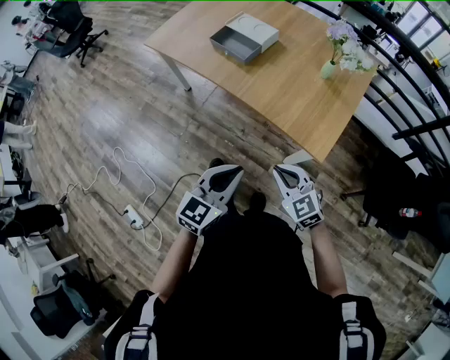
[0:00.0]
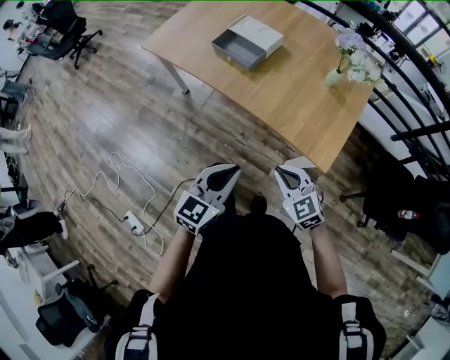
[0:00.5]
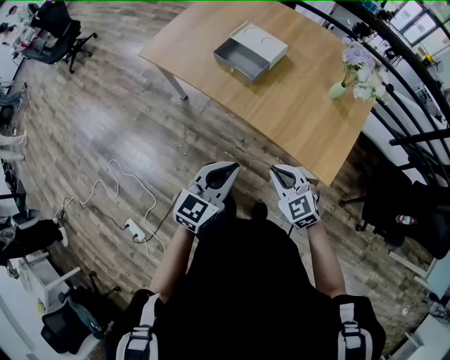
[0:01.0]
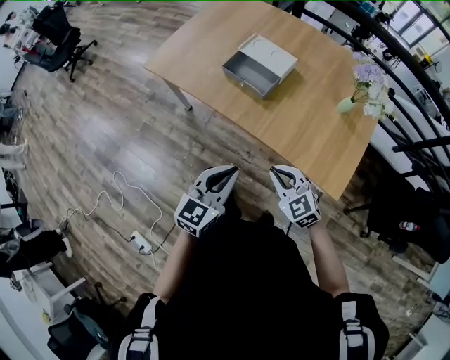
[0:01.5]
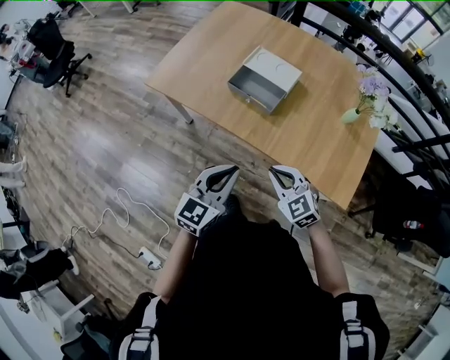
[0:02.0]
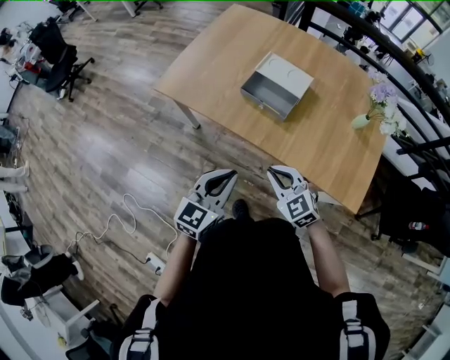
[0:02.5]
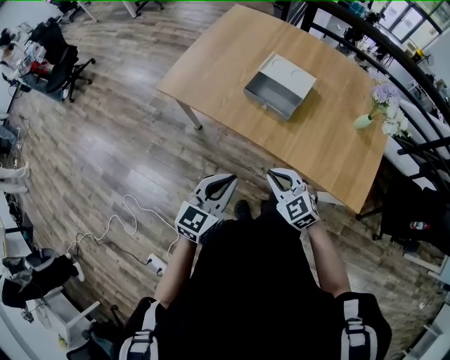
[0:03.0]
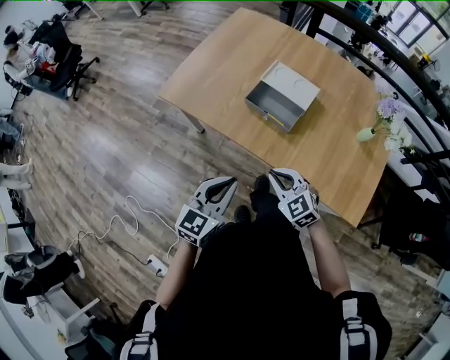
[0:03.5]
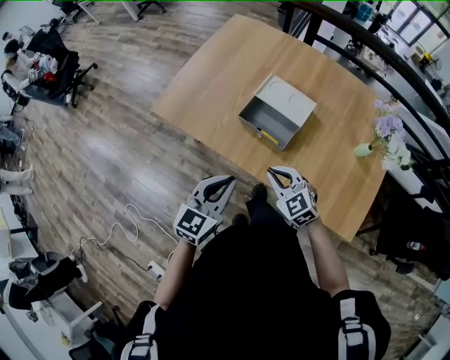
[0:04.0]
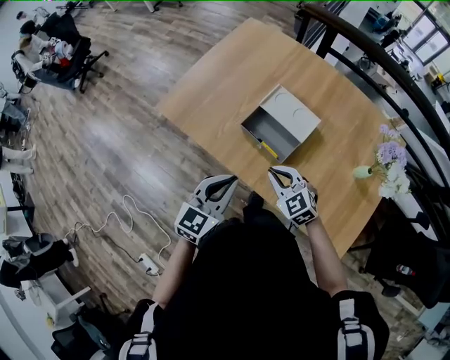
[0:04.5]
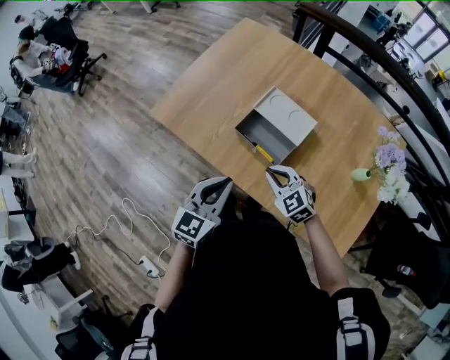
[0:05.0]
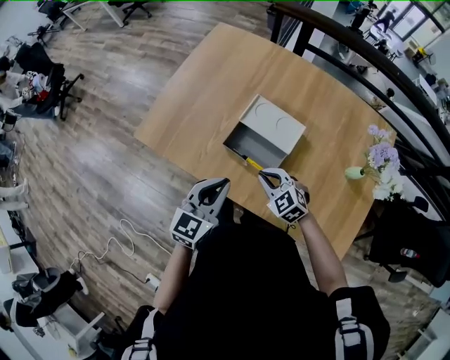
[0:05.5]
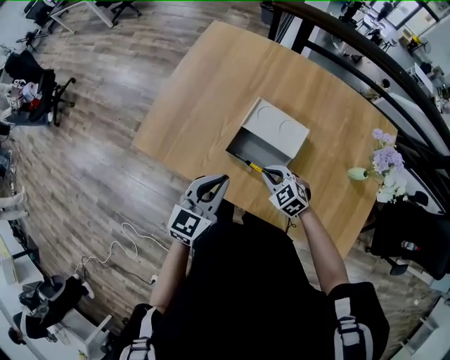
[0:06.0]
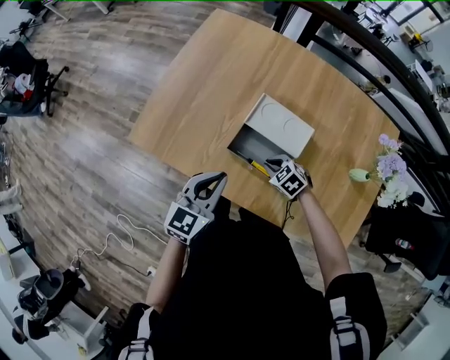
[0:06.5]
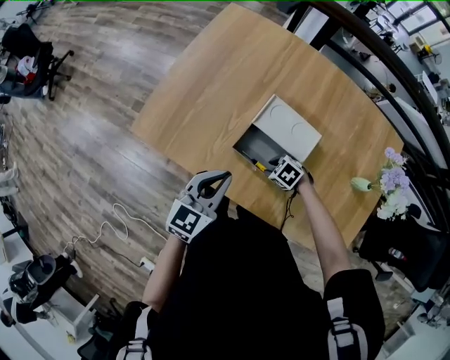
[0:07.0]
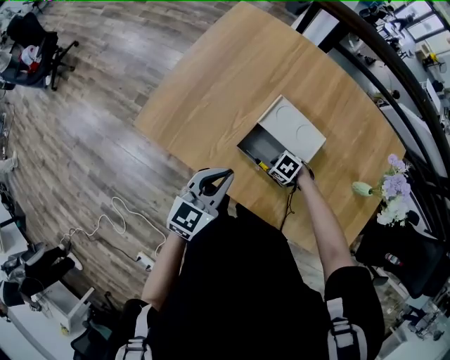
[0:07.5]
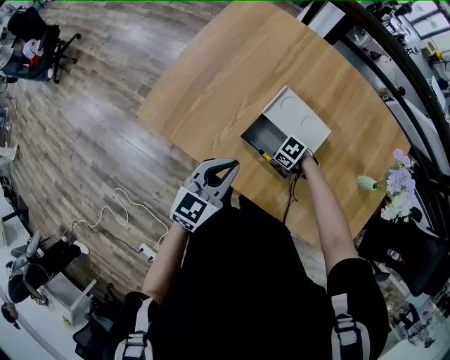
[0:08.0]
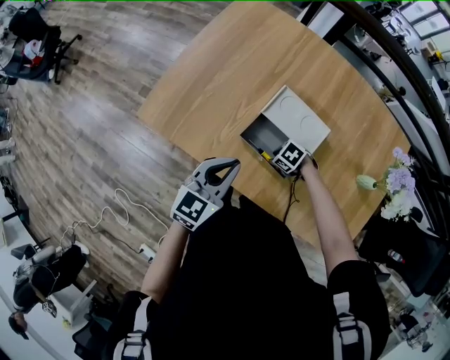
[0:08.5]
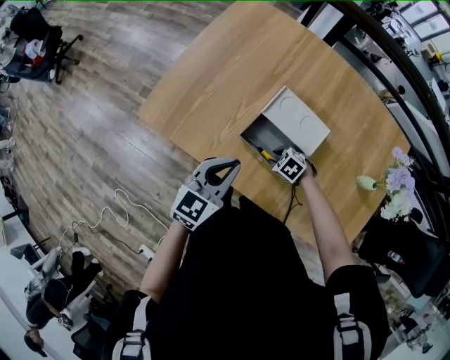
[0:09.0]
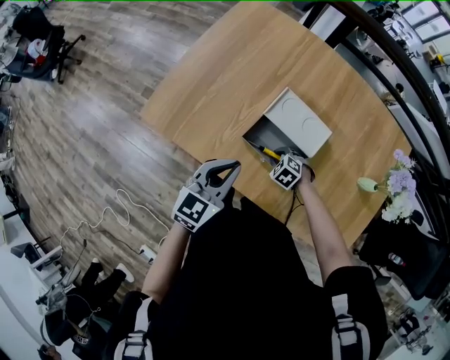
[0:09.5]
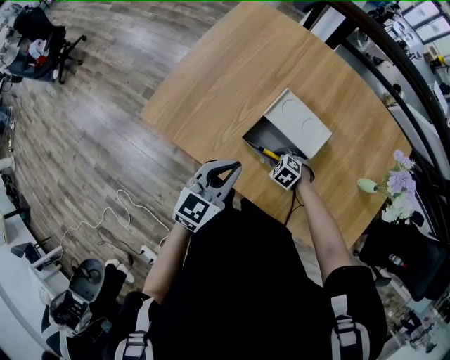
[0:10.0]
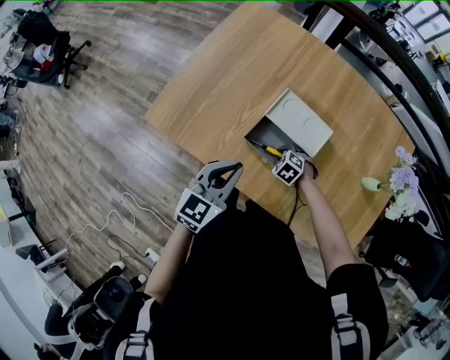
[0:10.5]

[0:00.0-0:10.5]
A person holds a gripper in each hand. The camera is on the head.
0:00.0 to 0:02.0: Both grippers travel together forward and to the left, roughly 30 cm.
0:02.0 to 0:04.0: The grippers both shift forward by approximately 15 cm.
0:04.0 to 0:06.5: The right gripper goes about 25 cm forward and downward, and turns by approximately 30 degrees; the left gripper shifts about 20 cm forward.
0:06.5 to 0:08.5: The right gripper is displaced downward by about 5 cm, changes its angle by about 30 degrees, and opens.
0:08.5 to 0:10.5: The right gripper swivels about 30 degrees.

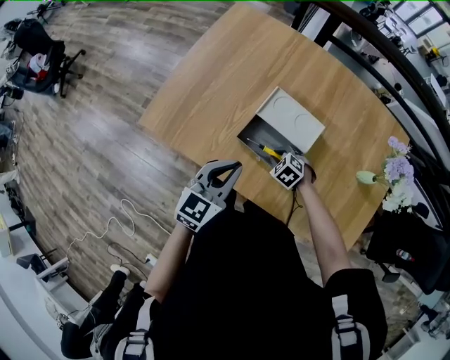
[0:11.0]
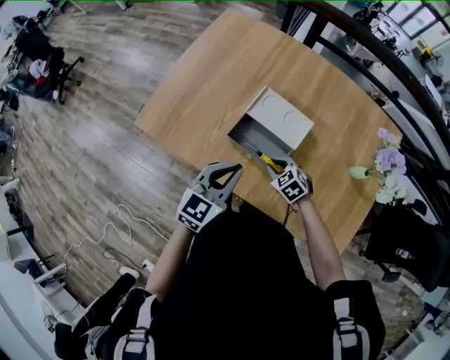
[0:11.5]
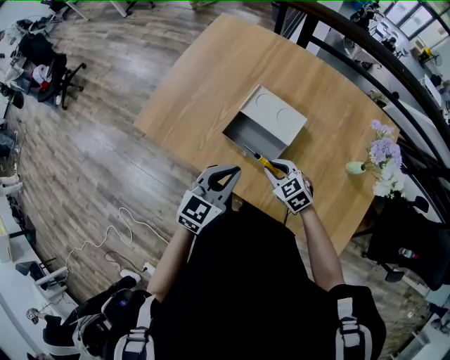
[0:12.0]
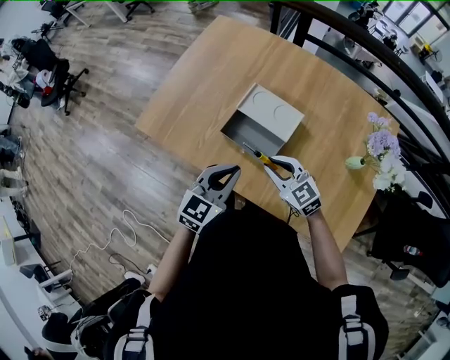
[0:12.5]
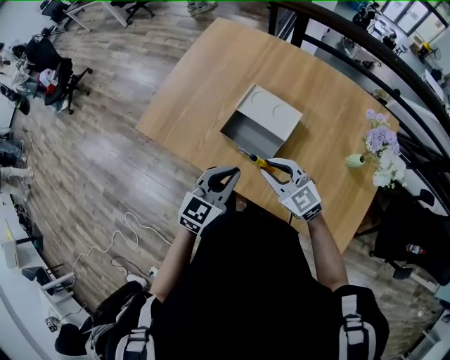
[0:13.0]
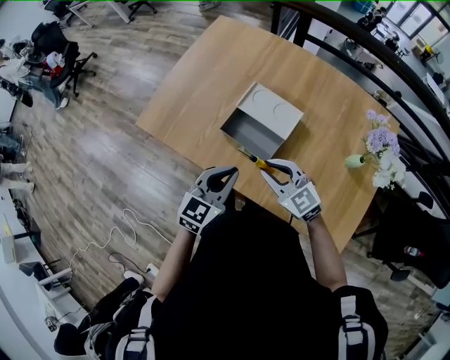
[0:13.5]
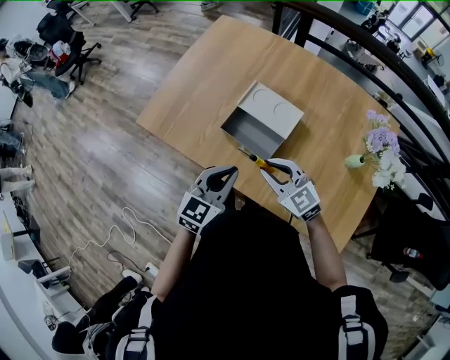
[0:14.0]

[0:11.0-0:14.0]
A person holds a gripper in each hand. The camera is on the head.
0:11.0 to 0:12.5: The left gripper heads backward and to the right, covering approximately 10 cm; the right gripper heads upward and backward, covering some 20 cm, and points its fingers approximately 40 degrees further upward.
0:12.5 to 0:14.0: There are only small adjustments of the grippers.

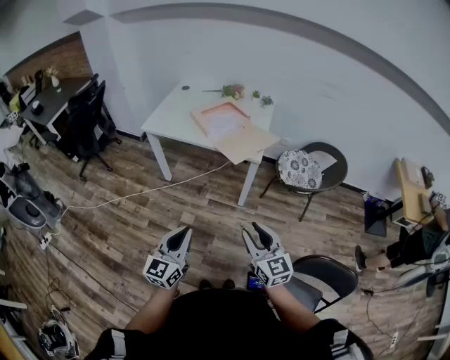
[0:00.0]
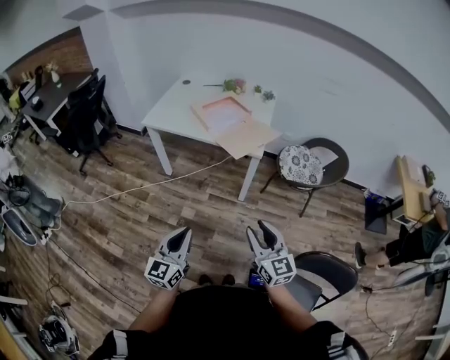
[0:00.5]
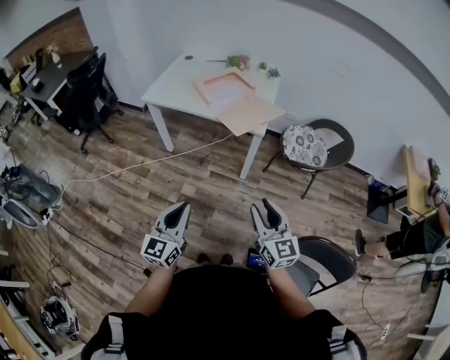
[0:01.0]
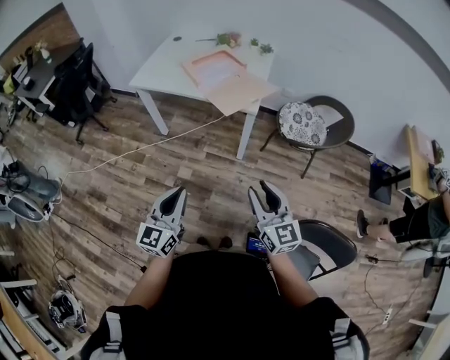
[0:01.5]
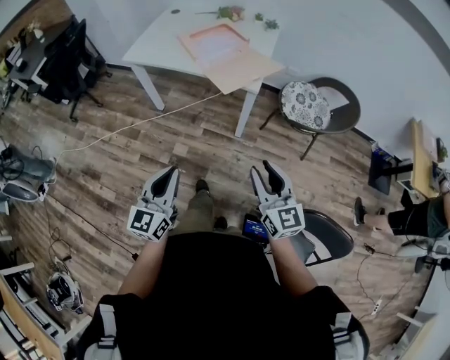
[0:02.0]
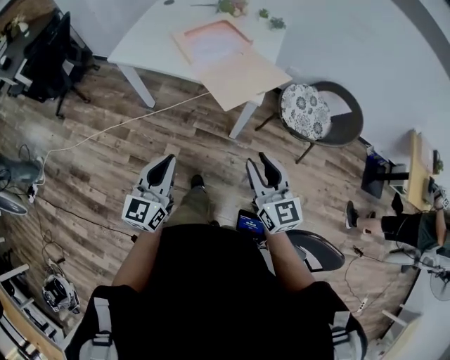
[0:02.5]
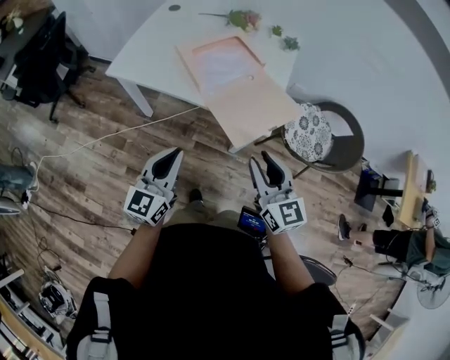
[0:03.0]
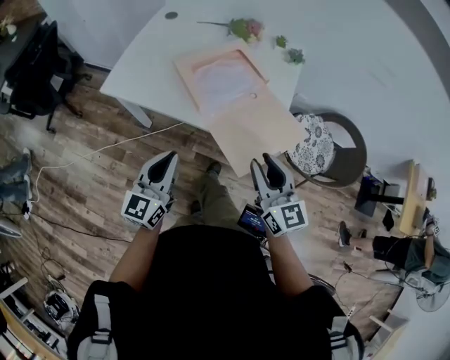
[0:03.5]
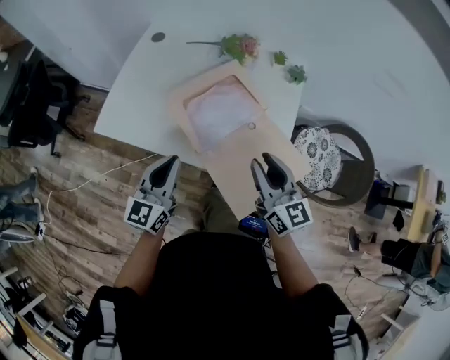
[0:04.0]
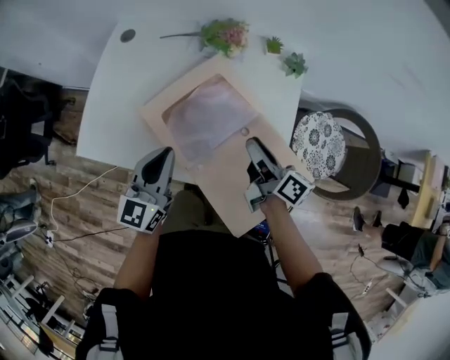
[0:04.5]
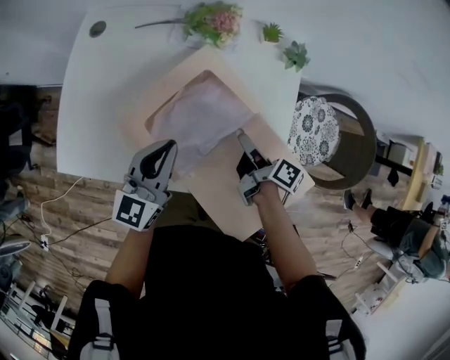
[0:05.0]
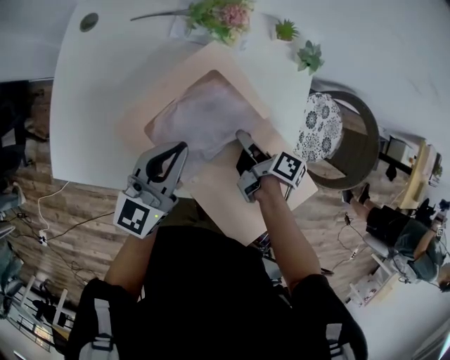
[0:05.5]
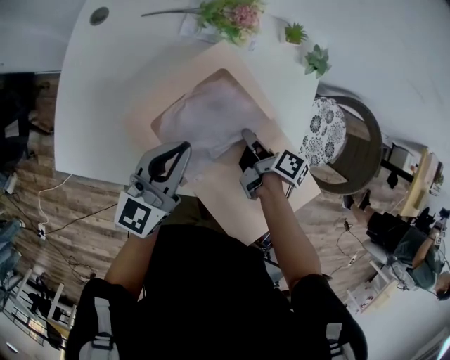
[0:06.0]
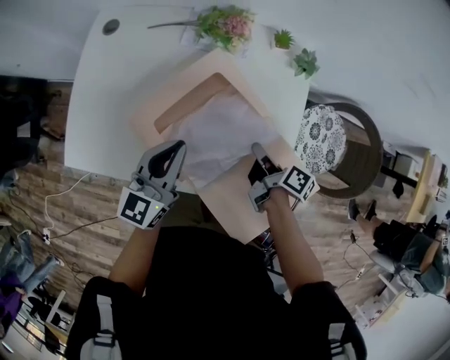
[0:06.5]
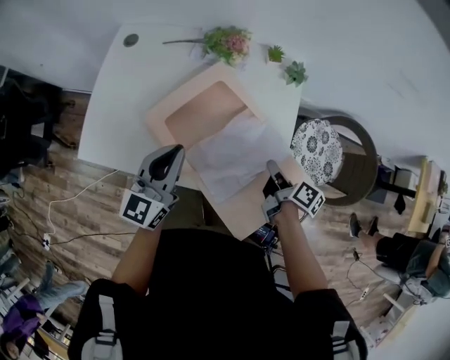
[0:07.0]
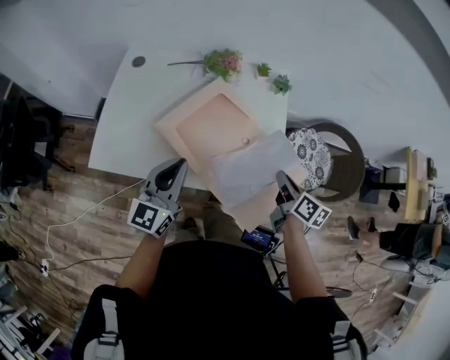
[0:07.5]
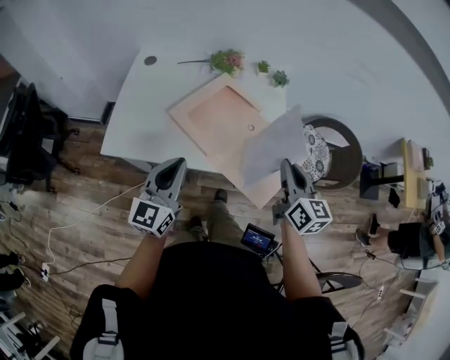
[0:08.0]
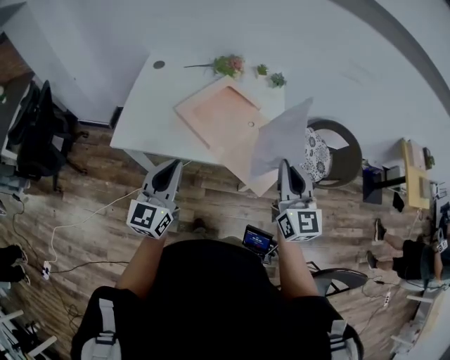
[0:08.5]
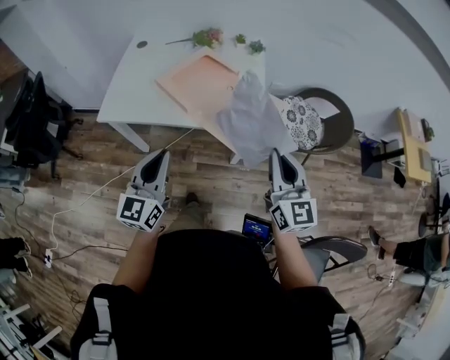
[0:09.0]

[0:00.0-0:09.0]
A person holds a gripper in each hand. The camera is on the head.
0:00.0 to 0:02.0: The right gripper heads to the right and forward, covering approximately 10 cm; the left gripper changes place by roughly 5 cm.
0:02.0 to 0:04.5: The two grippers travel together, forward, roughly 60 cm. The right gripper rolls clockwise, seen from behind, by some 60 degrees.
0:04.5 to 0:07.0: The right gripper travels downward and to the right by about 10 cm, turns by approximately 30 degrees, and closes its fingers. Meanwhile the left gripper moves some 10 cm forward and comes back.
0:07.0 to 0:09.0: The left gripper heads backward, covering approximately 35 cm. Meanwhile the right gripper goes some 40 cm backward and upward, and twists roughly 70 degrees counterclockwise, seen from behind.

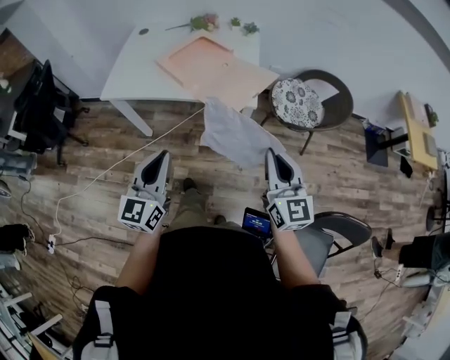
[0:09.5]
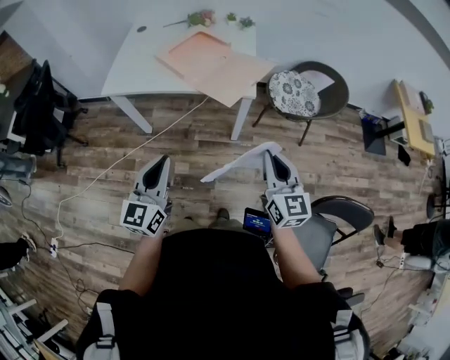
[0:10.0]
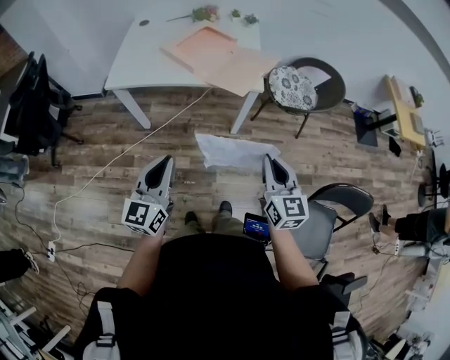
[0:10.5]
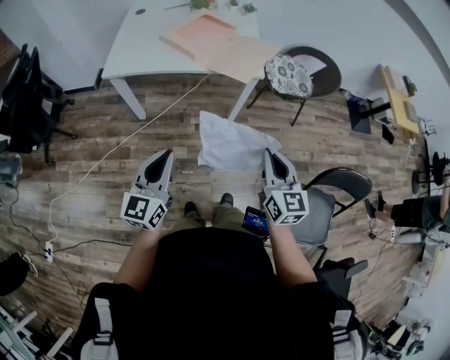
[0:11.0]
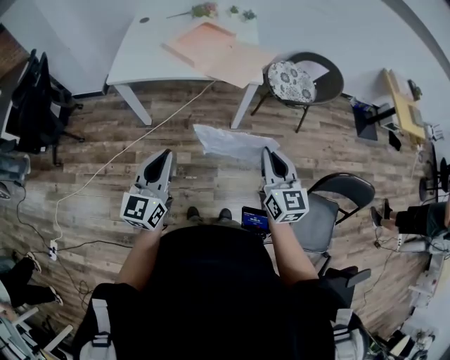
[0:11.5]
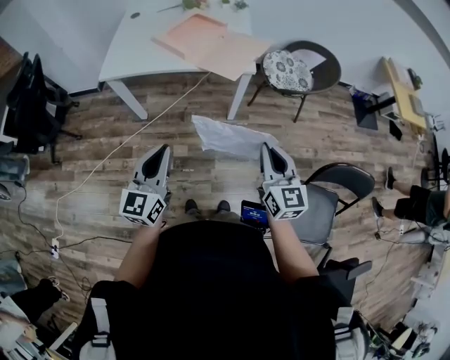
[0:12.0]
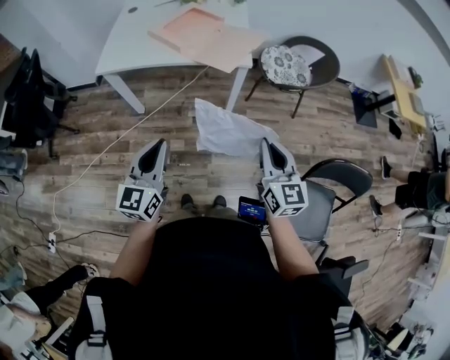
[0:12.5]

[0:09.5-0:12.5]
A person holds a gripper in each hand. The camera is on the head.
0:09.5 to 0:11.0: The grippers both shift backward and to the left by approximately 15 cm.
0:11.0 to 0:12.5: The two grippers go about 5 cm to the right.

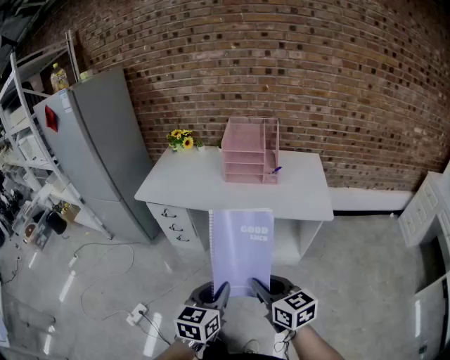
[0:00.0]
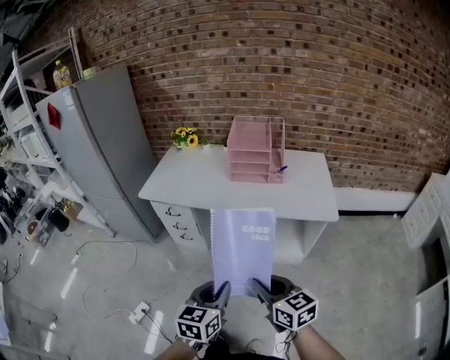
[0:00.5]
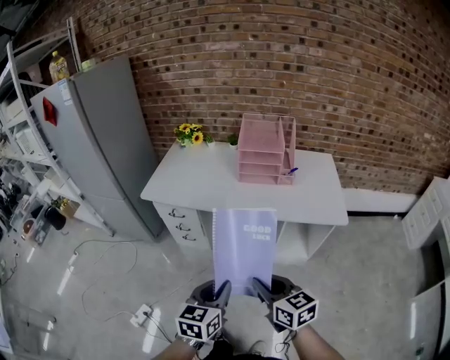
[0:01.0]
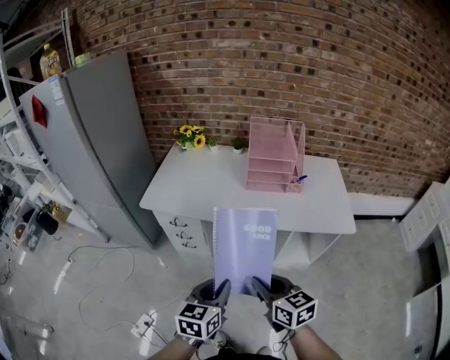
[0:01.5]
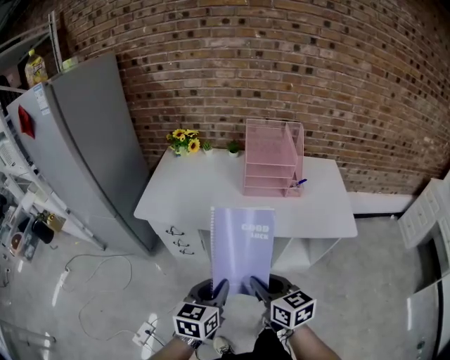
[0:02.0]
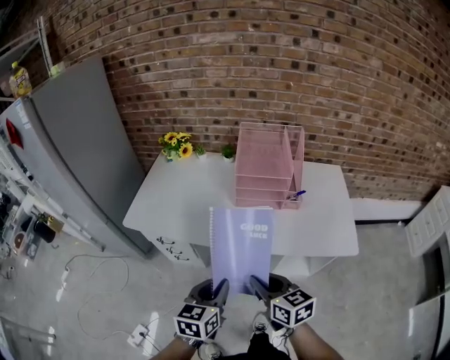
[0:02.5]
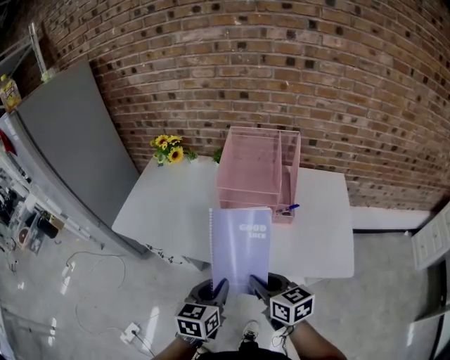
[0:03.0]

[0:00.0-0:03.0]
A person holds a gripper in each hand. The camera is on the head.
0:00.0 to 0:01.5: The grippers both shift forward and to the left by about 20 cm.
0:01.5 to 0:03.0: The two grippers go about 25 cm forward and to the right.
